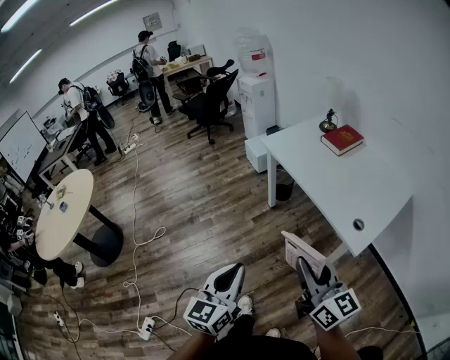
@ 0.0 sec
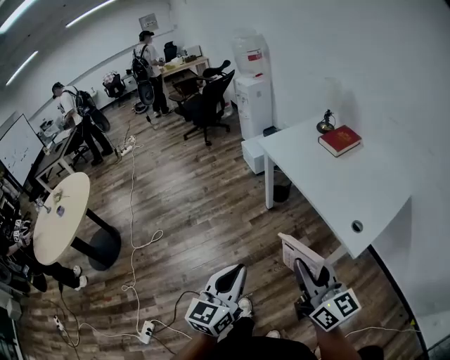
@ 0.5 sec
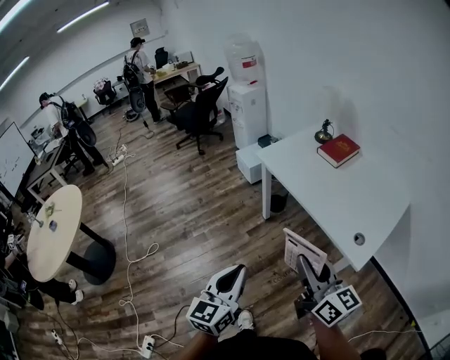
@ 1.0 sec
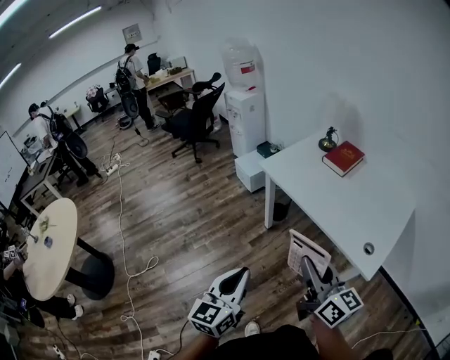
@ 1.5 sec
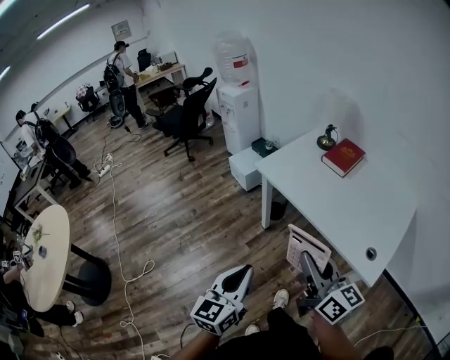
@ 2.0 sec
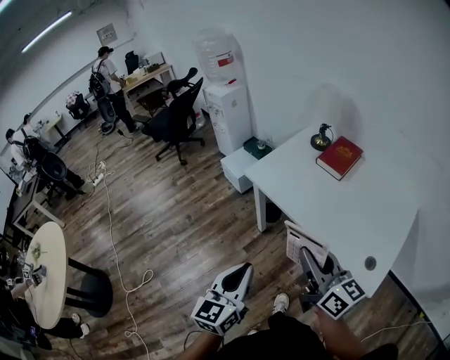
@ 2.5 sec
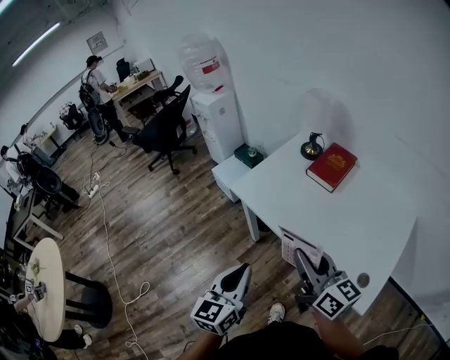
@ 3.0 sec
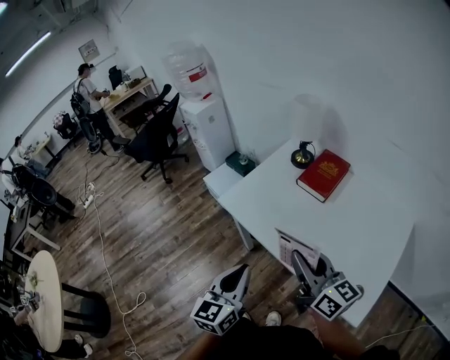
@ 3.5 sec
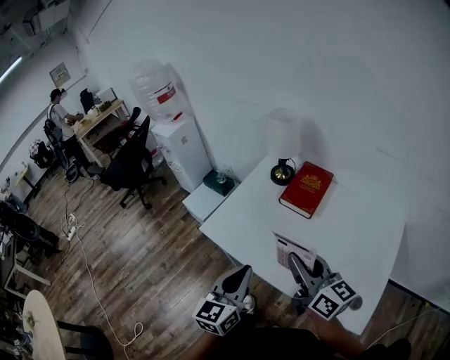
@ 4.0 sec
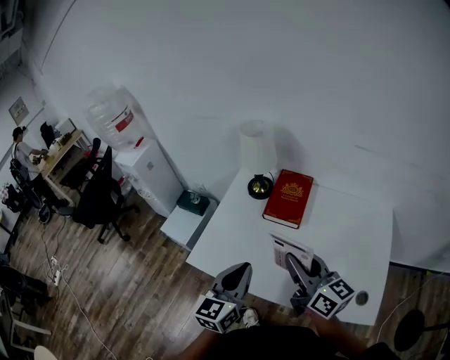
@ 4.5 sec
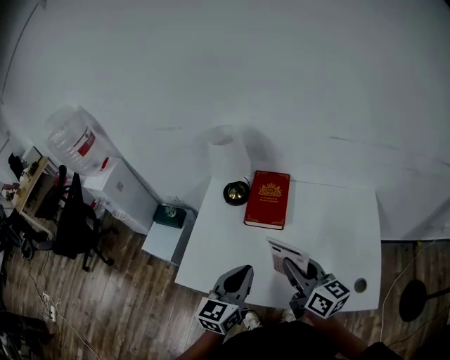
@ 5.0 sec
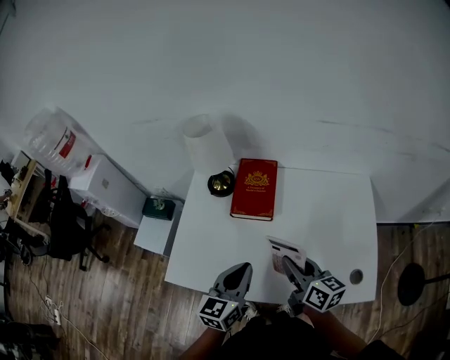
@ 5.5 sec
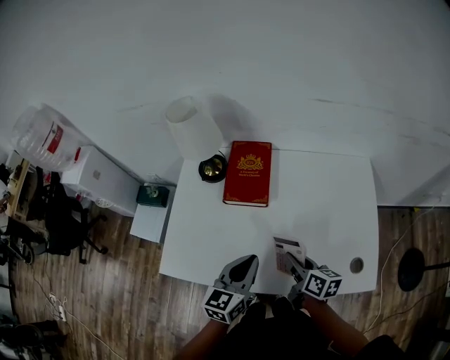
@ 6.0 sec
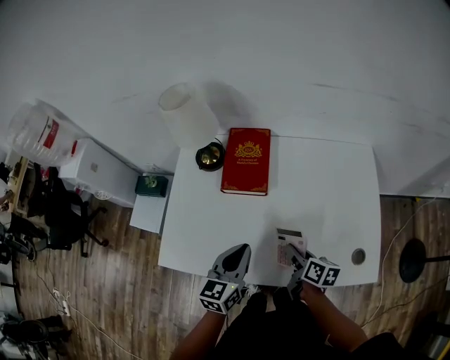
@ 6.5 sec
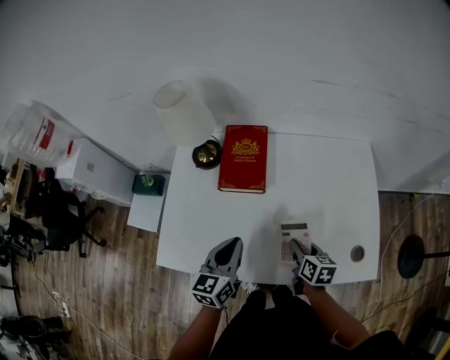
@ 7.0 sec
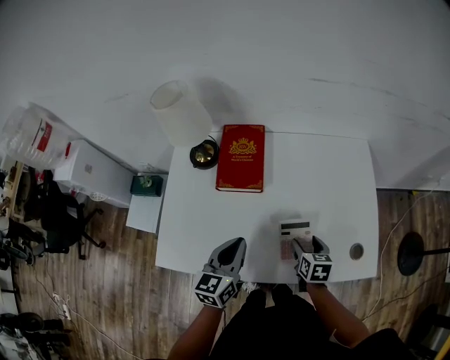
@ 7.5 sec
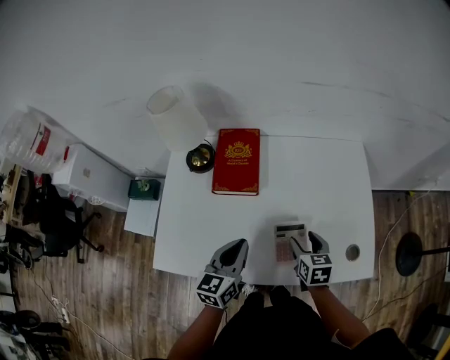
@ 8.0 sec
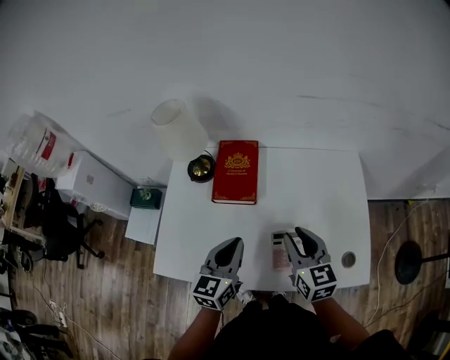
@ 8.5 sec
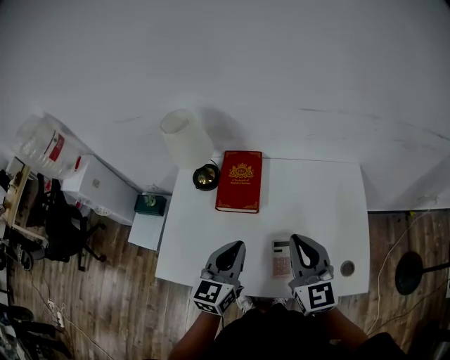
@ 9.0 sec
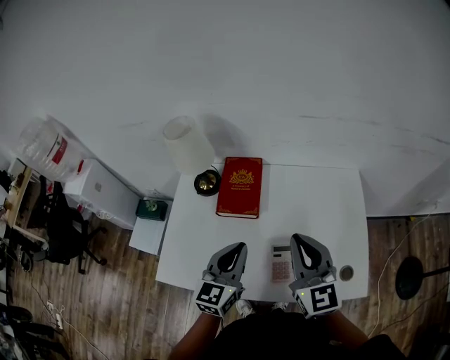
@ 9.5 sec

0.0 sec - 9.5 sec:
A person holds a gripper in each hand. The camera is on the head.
0.0 sec - 2.0 sec: Both grippers move forward, roughly 25 cm.
2.0 sec - 4.0 sec: Both grippers travel together forward and to the right, some 40 cm.
4.0 sec - 5.5 sec: The right gripper travels downward by approximately 15 cm, and turns by approximately 30 degrees, while the left gripper changes place by roughly 20 cm, and turns by approximately 30 degrees.
5.5 sec - 7.5 sec: The right gripper is displaced downward and to the right by approximately 20 cm, tilts its fingers about 30 degrees downward, and opens, while the left gripper heads downward, covering approximately 5 cm.
7.5 sec - 9.5 sec: The left gripper shifts roughly 10 cm upward; the right gripper heads upward, covering approximately 30 cm, tilts its fingers roughly 40 degrees upward, and closes its fingers.

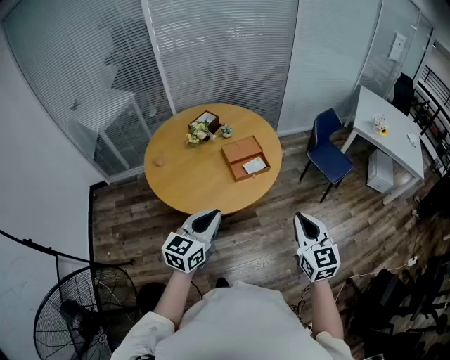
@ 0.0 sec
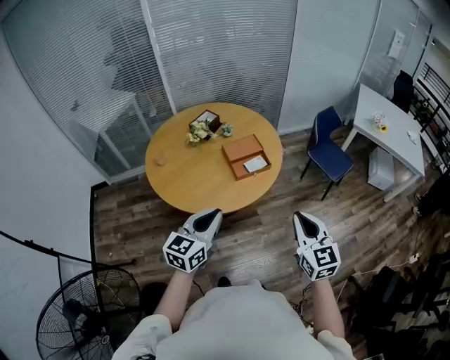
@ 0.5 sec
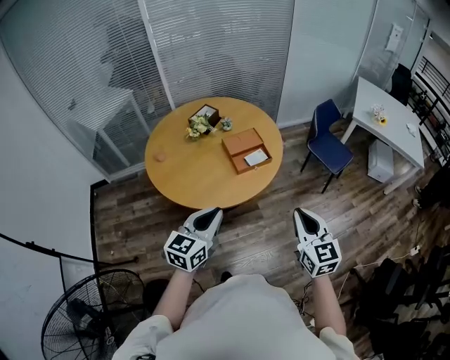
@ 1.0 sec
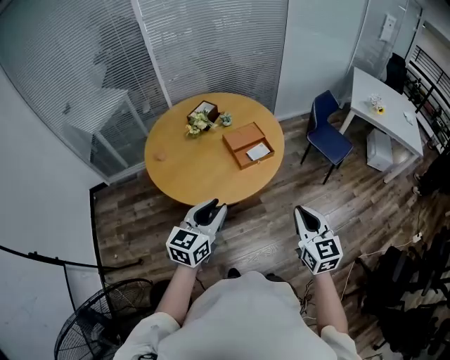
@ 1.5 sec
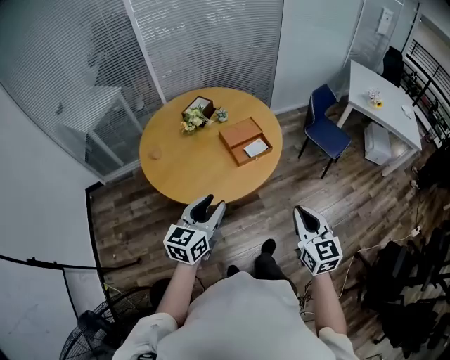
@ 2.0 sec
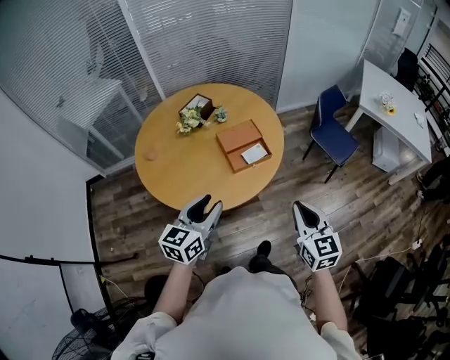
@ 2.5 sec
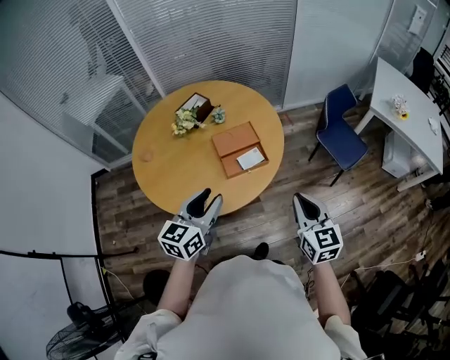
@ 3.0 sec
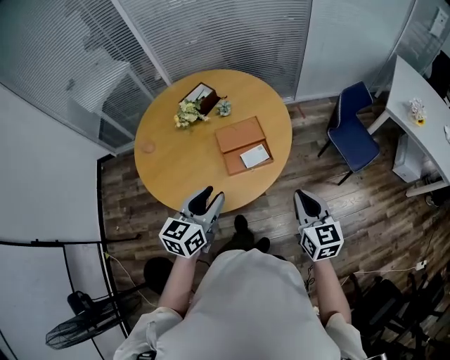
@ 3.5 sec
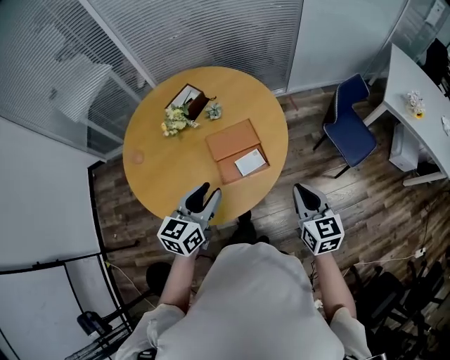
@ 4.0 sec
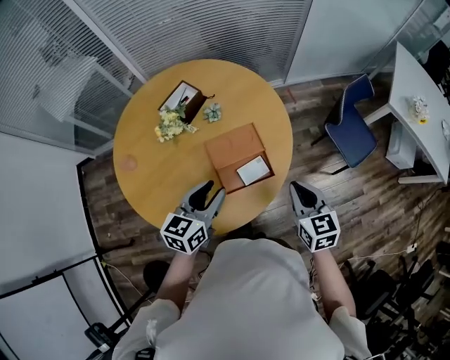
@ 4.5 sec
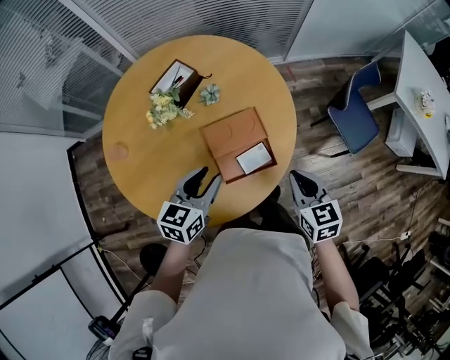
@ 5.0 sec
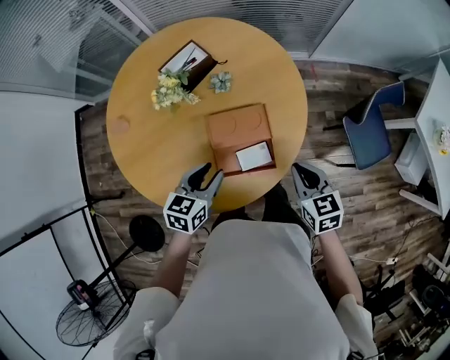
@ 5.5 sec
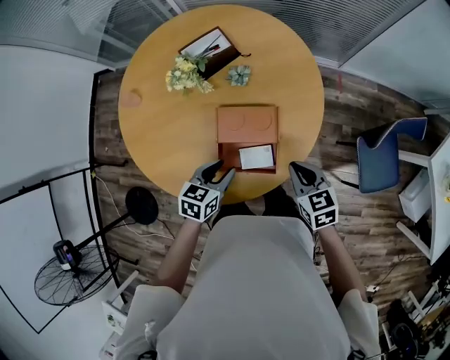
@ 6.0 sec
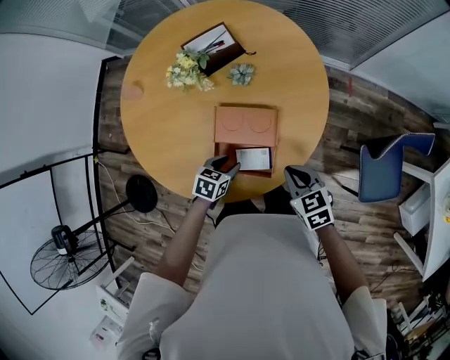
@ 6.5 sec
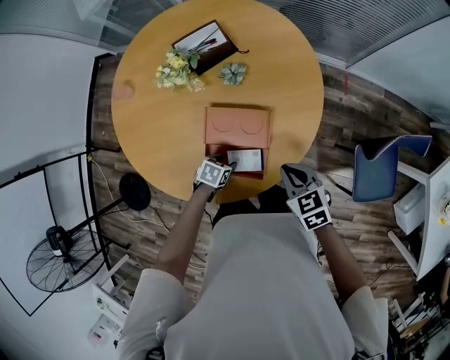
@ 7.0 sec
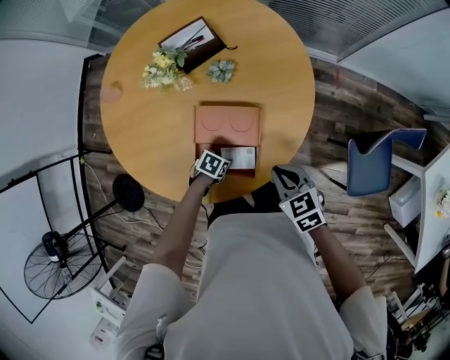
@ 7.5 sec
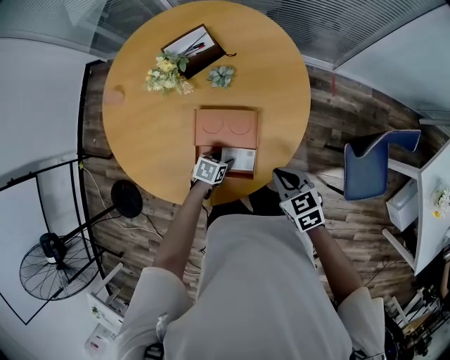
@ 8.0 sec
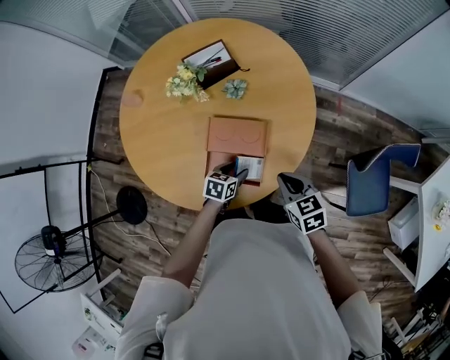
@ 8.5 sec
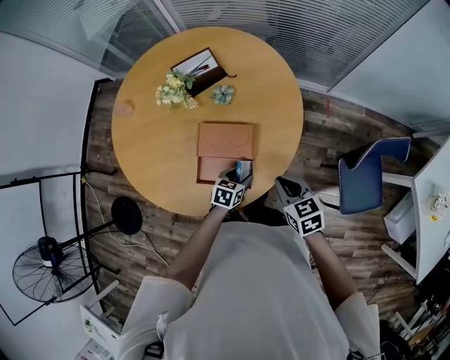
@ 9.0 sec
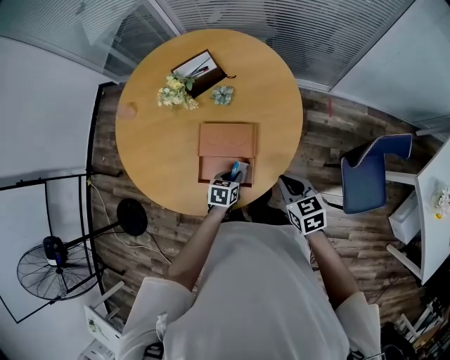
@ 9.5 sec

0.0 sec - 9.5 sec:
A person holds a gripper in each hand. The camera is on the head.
0.0 sec - 2.0 sec: Both grippers move to the left, some 5 cm. The left gripper opens up.
2.0 sec - 4.0 sec: Both grippers travel together forward, some 35 cm.
4.0 sec - 5.5 sec: The two grippers go about 20 cm forward and downward. The right gripper swivels some 30 degrees.
5.5 sec - 7.5 sec: The left gripper shifts roughly 30 cm downward, and tilts its fingers some 30 degrees downward. Meanwhile the right gripper goes approximately 10 cm downward, and rotates approximately 30 degrees.
7.5 sec - 9.5 sec: The right gripper shifts by about 5 cm. Meanwhile the left gripper travels upward by approximately 10 cm, swivels about 30 degrees, and closes.

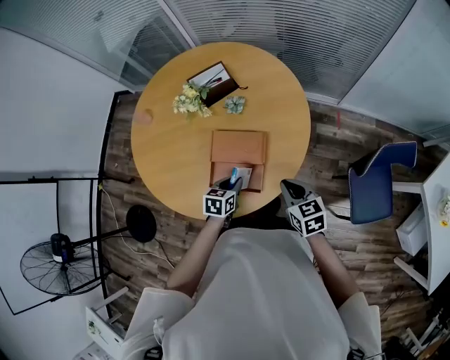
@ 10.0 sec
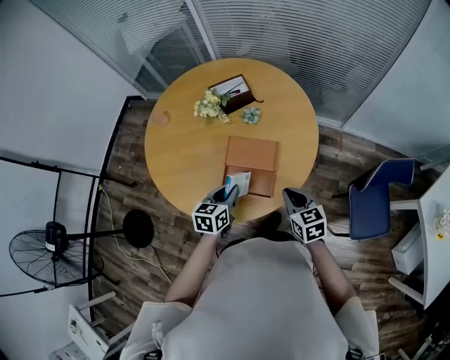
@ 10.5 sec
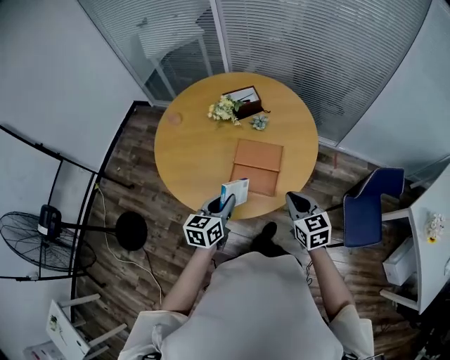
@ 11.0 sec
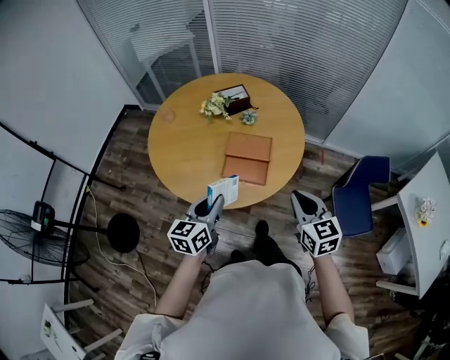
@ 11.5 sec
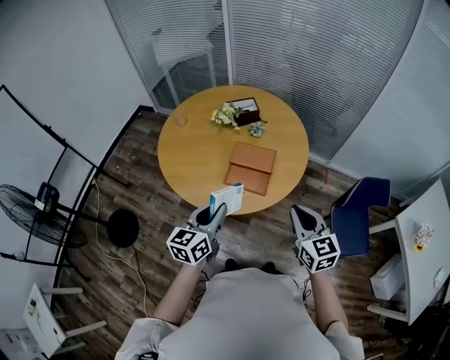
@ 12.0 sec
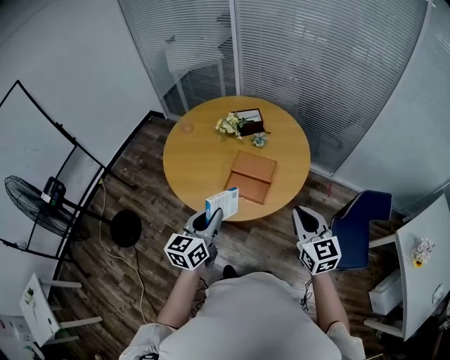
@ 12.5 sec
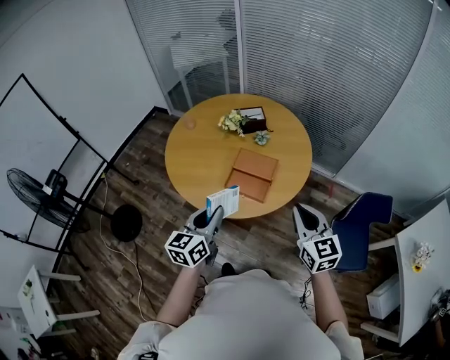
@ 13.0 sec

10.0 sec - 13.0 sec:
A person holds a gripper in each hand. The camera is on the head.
10.0 sec - 11.5 sec: The right gripper heads backward and upward, covering roughly 30 cm, and turns by about 20 degrees; the left gripper moves upward, backward and to the left, roughly 35 cm, and points its fingers roughly 30 degrees further upward.
11.5 sec - 13.0 sec: The right gripper moves upward and to the right, roughly 10 cm; the left gripper travels upward, backward and to the right by approximately 10 cm.

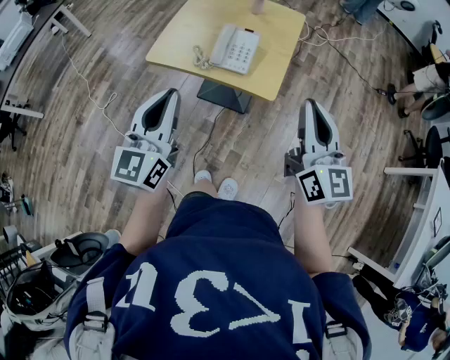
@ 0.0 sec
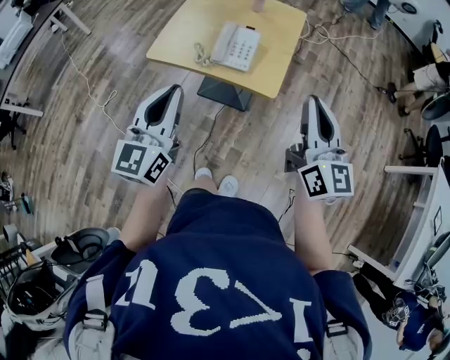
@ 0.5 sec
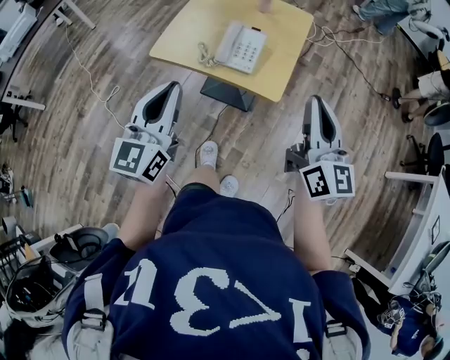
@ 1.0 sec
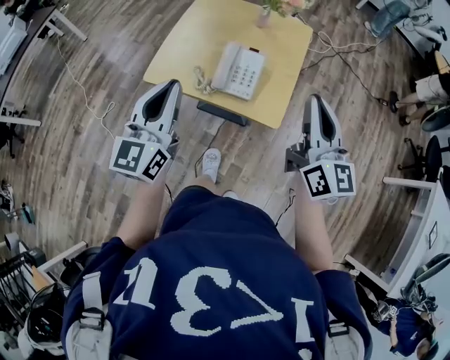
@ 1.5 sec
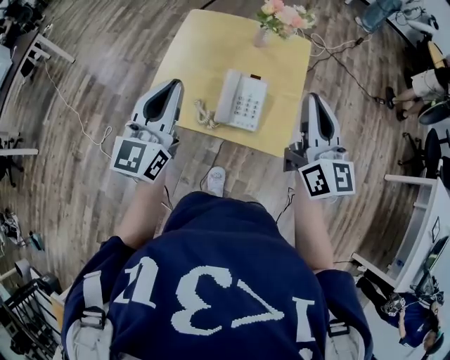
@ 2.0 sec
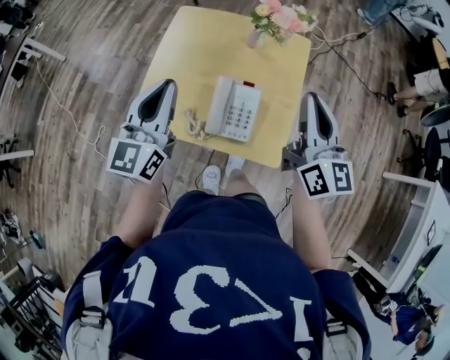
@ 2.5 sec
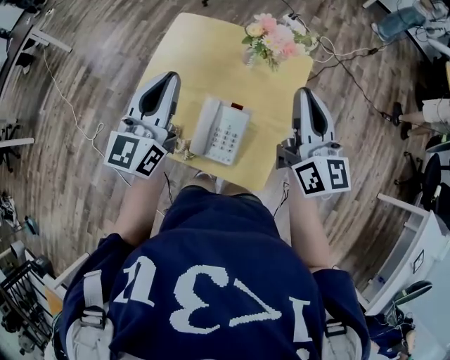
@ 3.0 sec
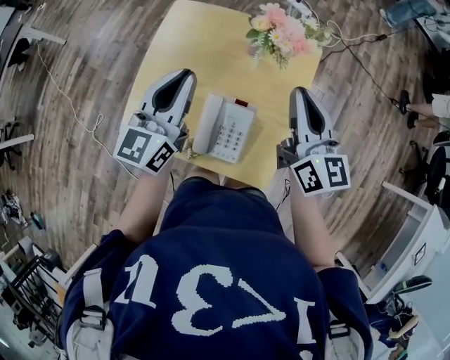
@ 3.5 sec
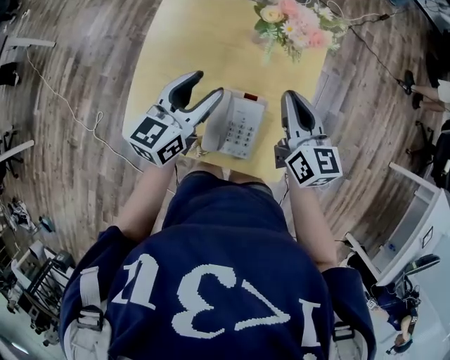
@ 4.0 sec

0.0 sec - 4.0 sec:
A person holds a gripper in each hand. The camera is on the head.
0.0 sec - 2.0 sec: Both grippers move forward, about 25 cm.
2.0 sec - 4.0 sec: The left gripper goes approximately 25 cm forward, downward and to the right, turns by some 30 degrees, and opens up; the right gripper travels forward and downward by about 25 cm, and swivels about 30 degrees.
